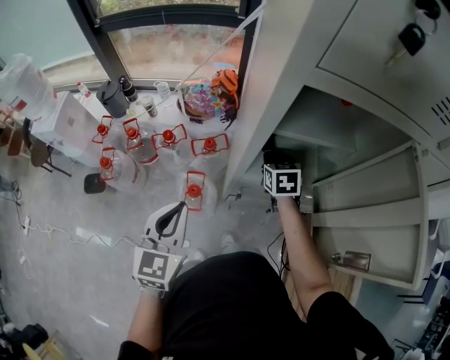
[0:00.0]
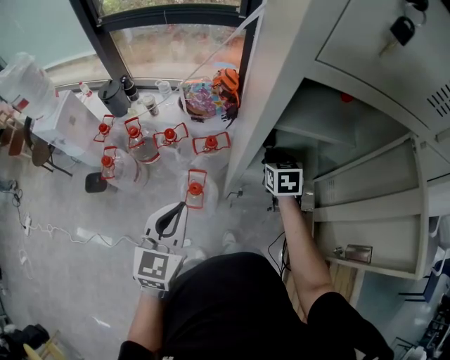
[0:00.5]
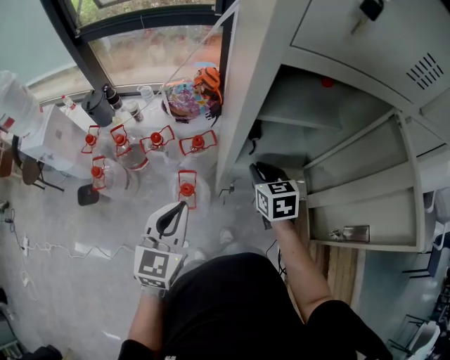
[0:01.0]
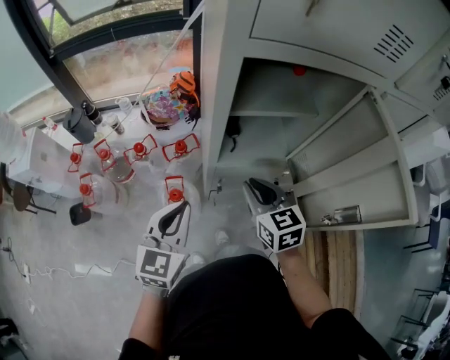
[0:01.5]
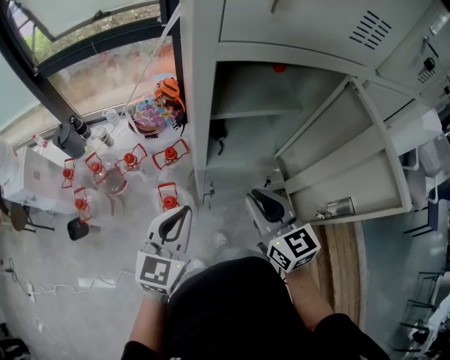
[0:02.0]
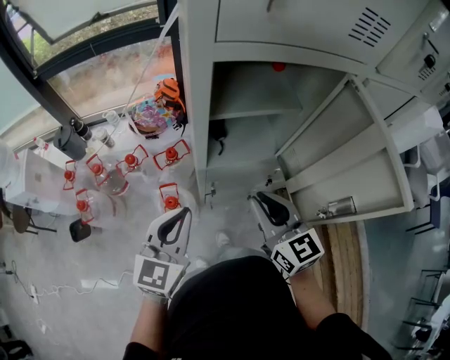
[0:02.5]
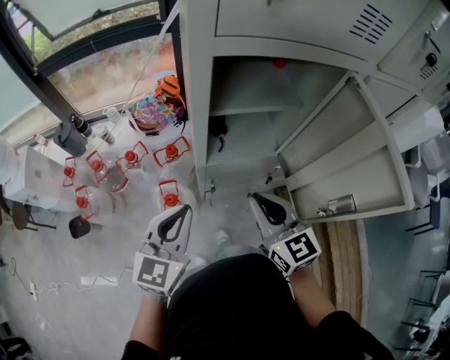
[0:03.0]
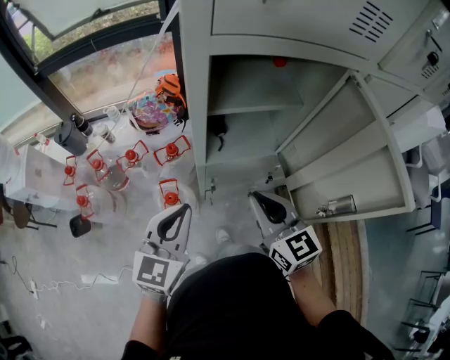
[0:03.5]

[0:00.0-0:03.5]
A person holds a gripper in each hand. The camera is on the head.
0:00.0 to 0:02.0: The right gripper is displaced backward and upward by some 25 cm, and turns by roughly 30 degrees, while the left gripper goes some 10 cm to the right, and changes its angle by approximately 20 degrees.
0:02.0 to 0:03.5: The grippers make only small movements.

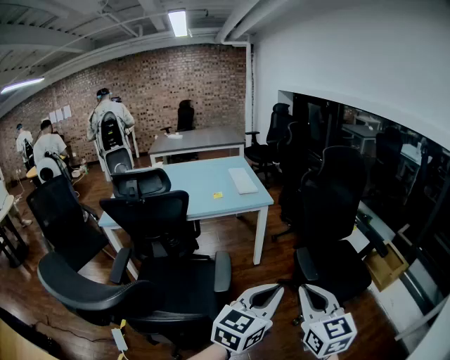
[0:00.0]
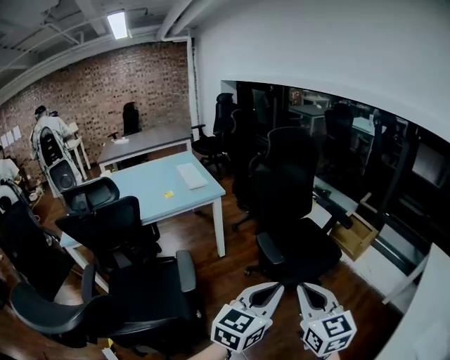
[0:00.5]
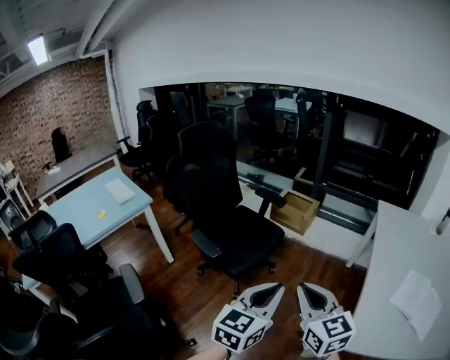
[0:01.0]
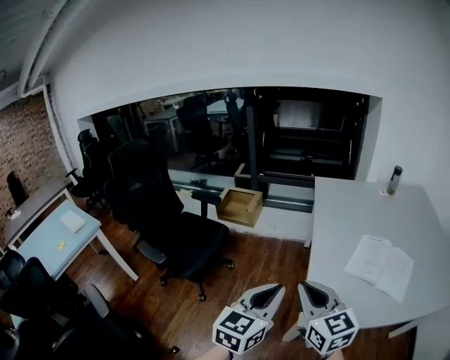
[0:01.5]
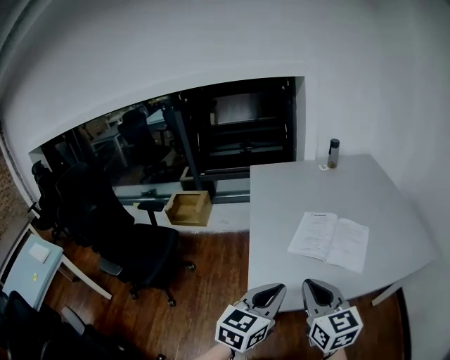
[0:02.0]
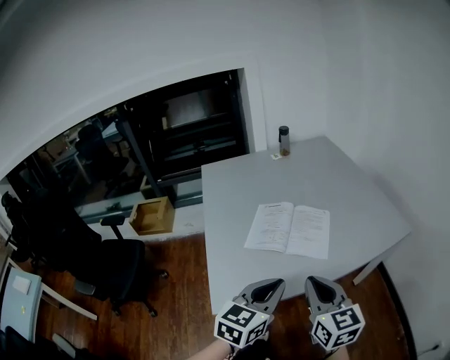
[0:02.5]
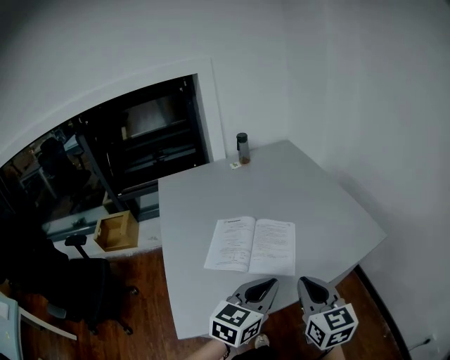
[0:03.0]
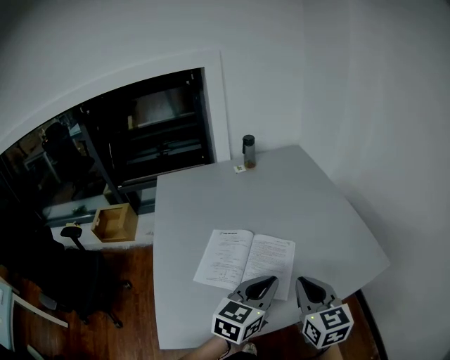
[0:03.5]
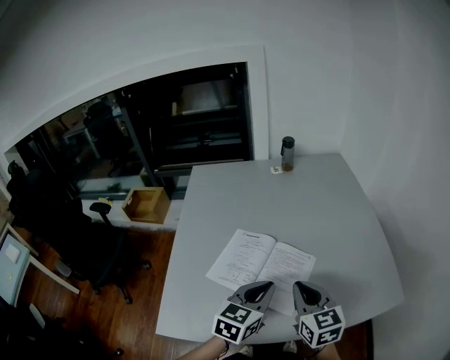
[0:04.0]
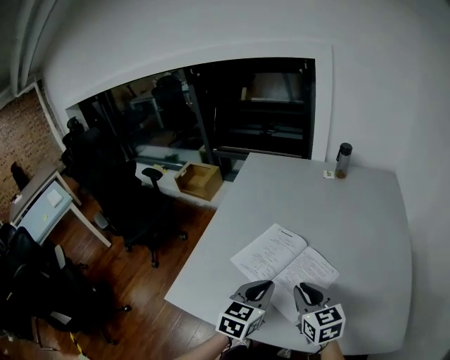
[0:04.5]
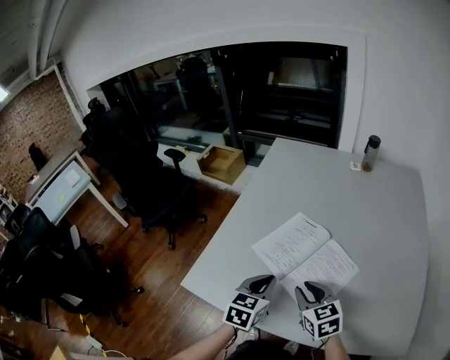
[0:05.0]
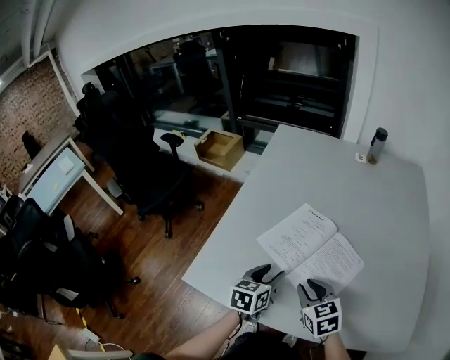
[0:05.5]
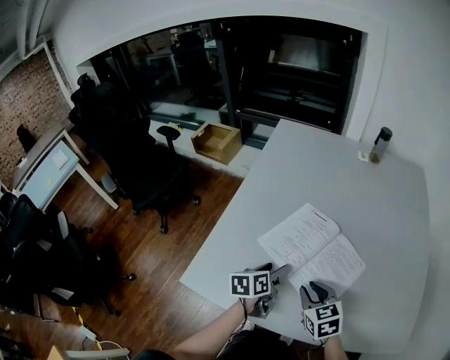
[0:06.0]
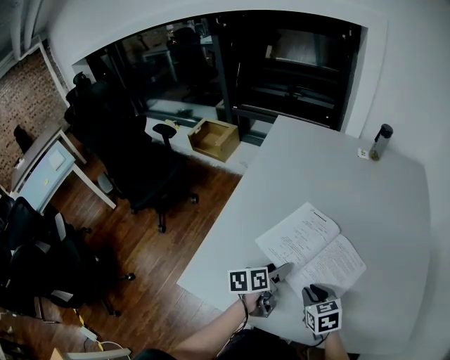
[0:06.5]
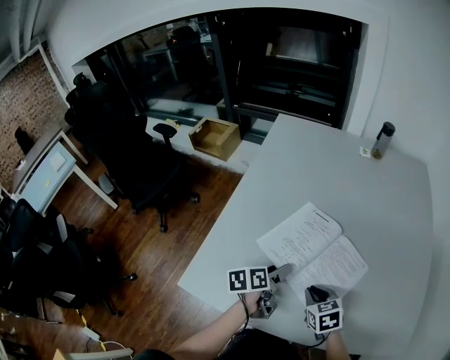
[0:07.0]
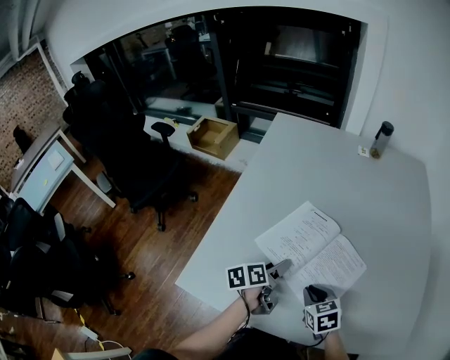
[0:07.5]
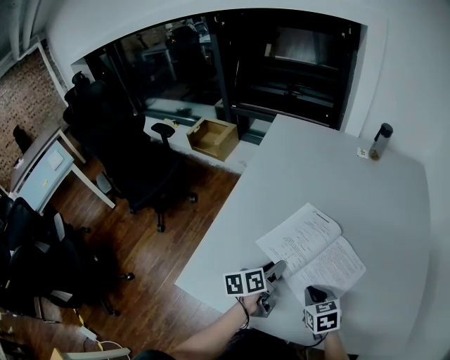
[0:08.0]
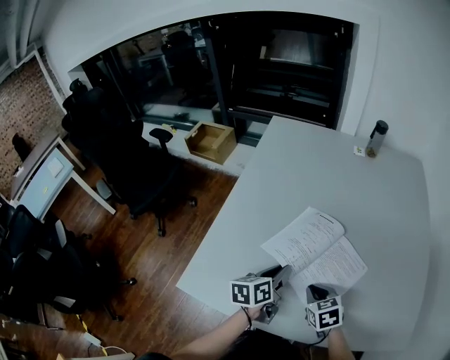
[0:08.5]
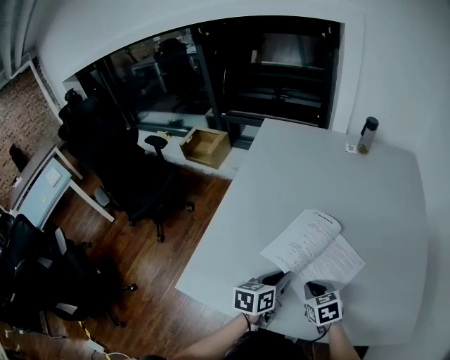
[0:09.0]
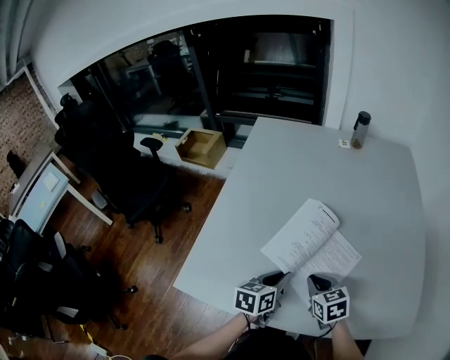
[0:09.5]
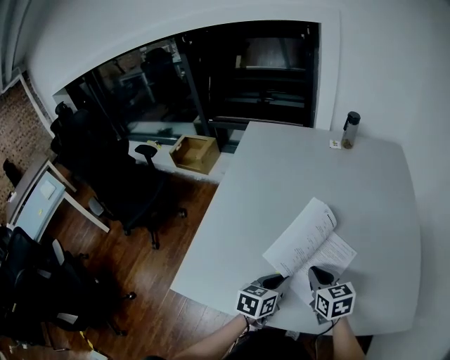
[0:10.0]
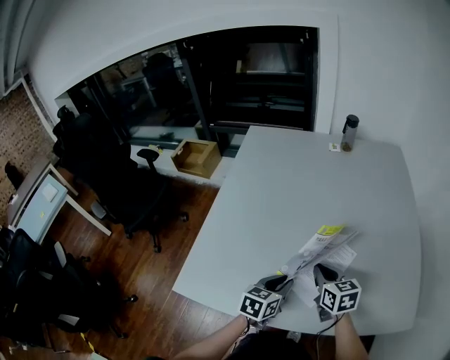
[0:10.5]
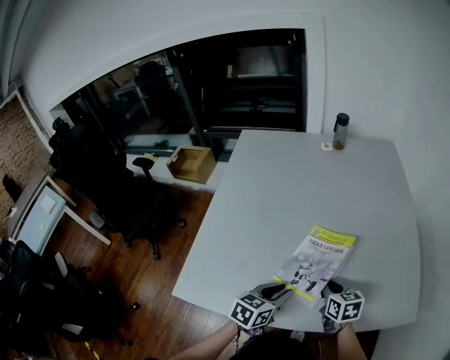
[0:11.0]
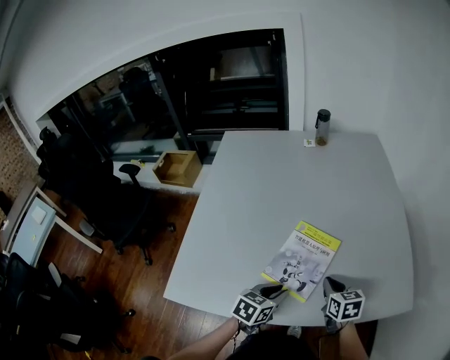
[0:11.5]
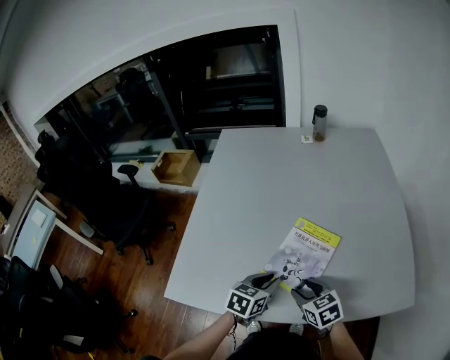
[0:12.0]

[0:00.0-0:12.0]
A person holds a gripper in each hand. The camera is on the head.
0:00.0 to 0:02.0: The two grippers travel together, about 70 cm. The left gripper rotates roughly 70 degrees. The right gripper turns by about 70 degrees.
0:02.0 to 0:04.0: Both grippers travel together forward and to the right, approximately 35 cm.
0:04.0 to 0:06.0: The grippers both shift downward by roughly 15 cm. The left gripper rolls counterclockwise, seen from behind, by about 50 degrees, and opens its fingers. The right gripper swivels roughly 30 degrees.
0:06.0 to 0:08.0: The left gripper closes its fingers. The right gripper shifts about 5 cm downward.
0:08.0 to 0:10.0: The left gripper travels to the right and backward by roughly 10 cm, and rotates some 40 degrees. Meanwhile the right gripper heads upward, covering some 5 cm.
0:10.0 to 0:12.0: The right gripper travels backward by roughly 10 cm, goes to the right and returns, roughly 10 cm each way, and opens.

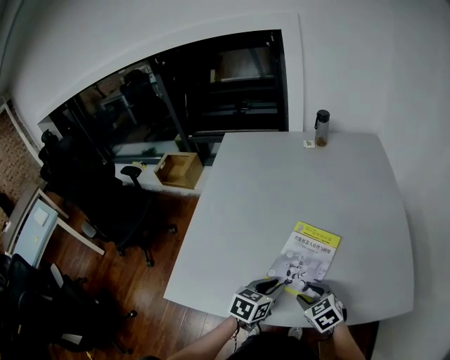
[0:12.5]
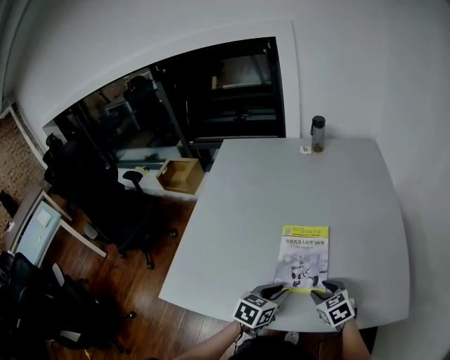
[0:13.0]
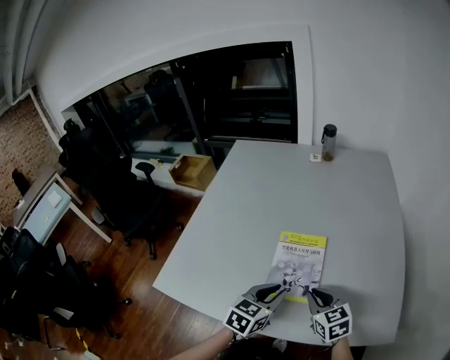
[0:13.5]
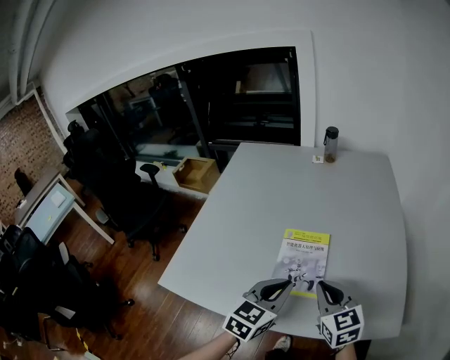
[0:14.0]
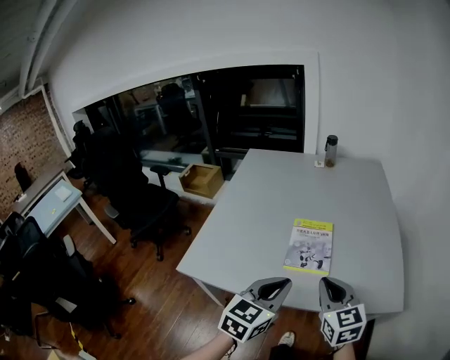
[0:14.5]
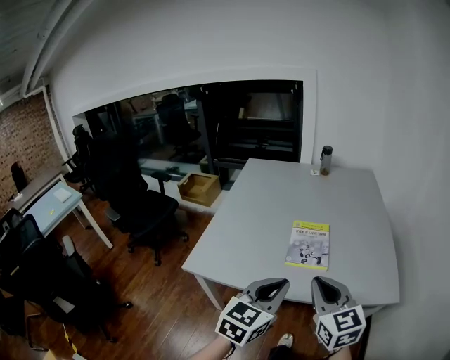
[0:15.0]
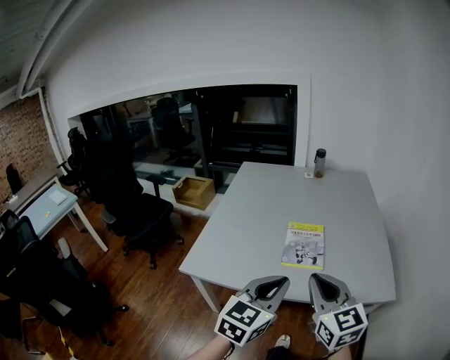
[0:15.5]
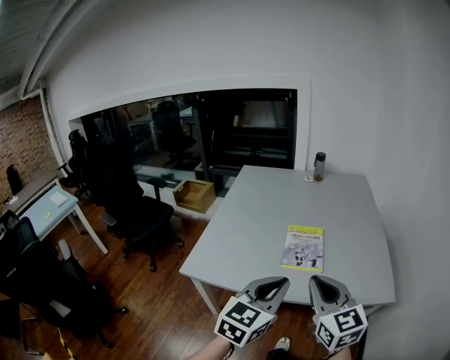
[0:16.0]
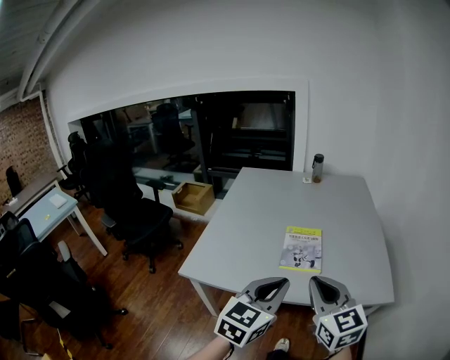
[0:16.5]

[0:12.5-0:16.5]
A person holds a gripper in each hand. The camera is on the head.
0:12.5 to 0:14.5: Both grippers travel together upward and backward, some 25 cm. The left gripper rotates roughly 30 degrees; the right gripper tips its fingers upward by roughly 30 degrees, and closes its fingers.
0:14.5 to 0:16.5: Both grippers travel together backward and upward, some 10 cm.

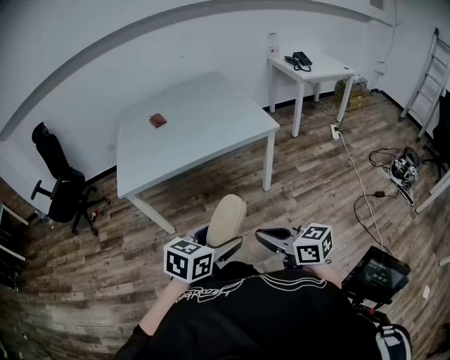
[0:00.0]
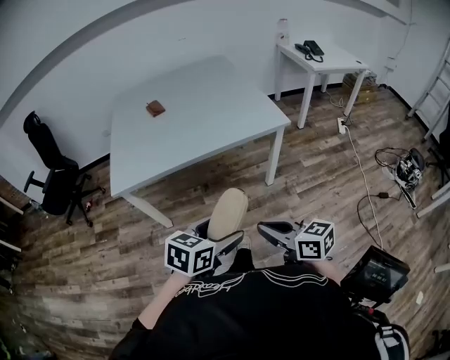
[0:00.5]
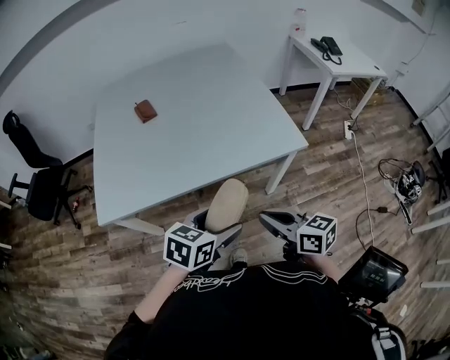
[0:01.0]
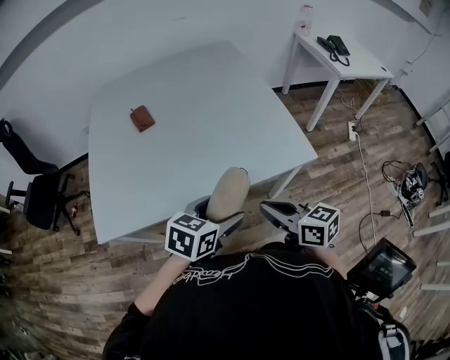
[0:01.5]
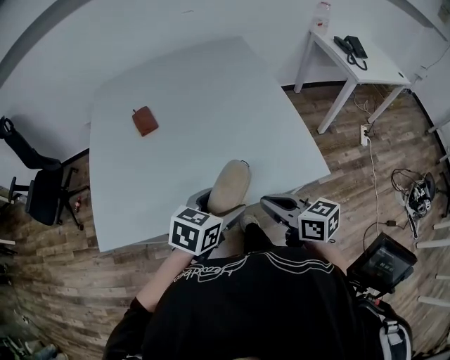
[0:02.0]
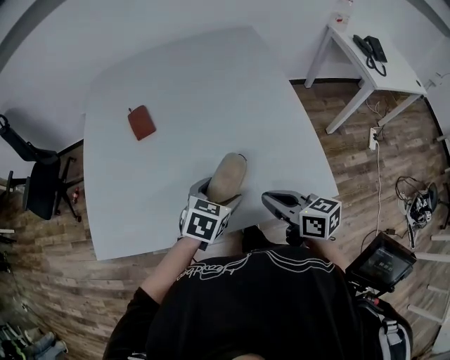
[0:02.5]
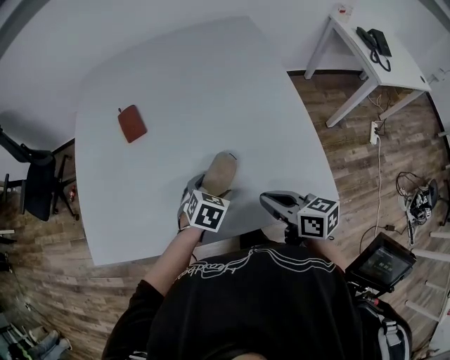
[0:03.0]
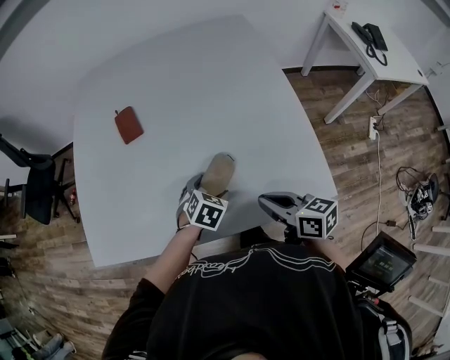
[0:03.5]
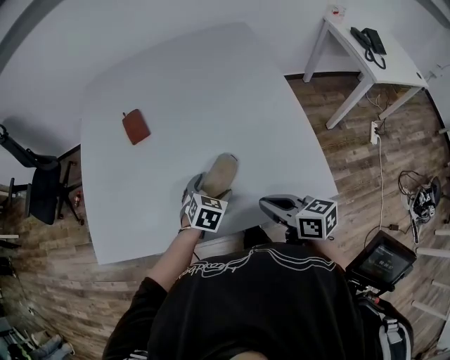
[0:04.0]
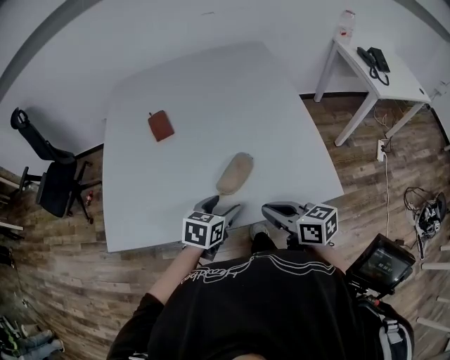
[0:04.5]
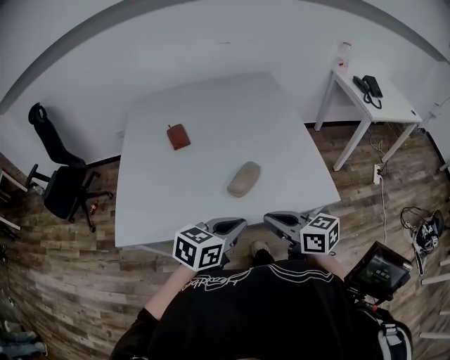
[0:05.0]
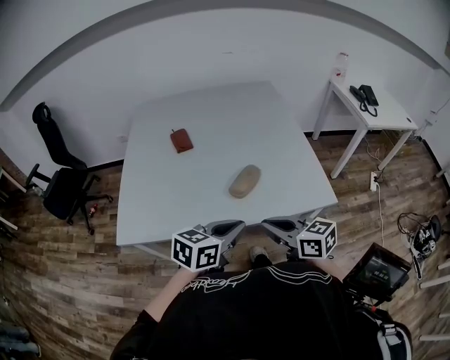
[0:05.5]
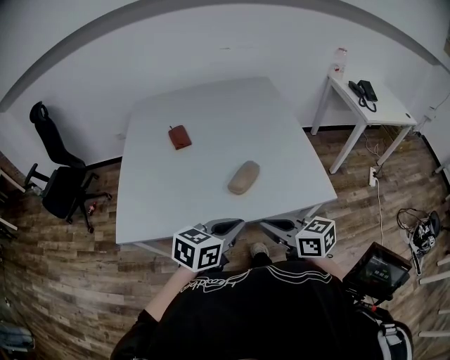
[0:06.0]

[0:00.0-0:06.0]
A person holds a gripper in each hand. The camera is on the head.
0:00.0 to 0:02.0: The two grippers travel together, forward, roughly 50 cm.
0:02.0 to 0:04.0: The right gripper travels forward and downward by approximately 10 cm. The left gripper travels downward and forward by about 20 cm, and swivels roughly 30 degrees.
0:04.0 to 0:06.0: The left gripper heads backward and upward, covering about 30 cm, changes its angle by some 40 degrees, and closes up. Meanwhile the right gripper heads backward, to the left and upward, covering approximately 20 cm.
